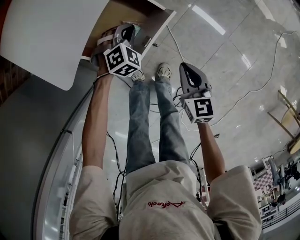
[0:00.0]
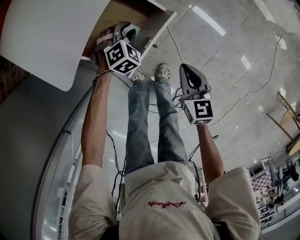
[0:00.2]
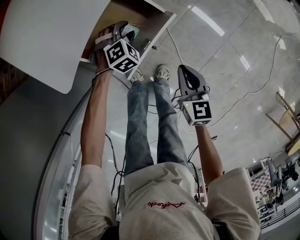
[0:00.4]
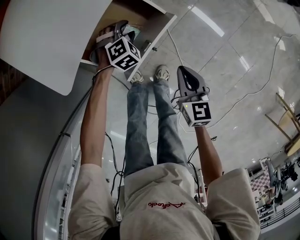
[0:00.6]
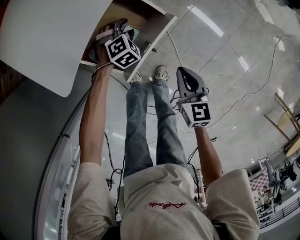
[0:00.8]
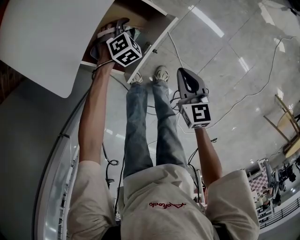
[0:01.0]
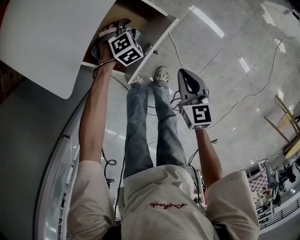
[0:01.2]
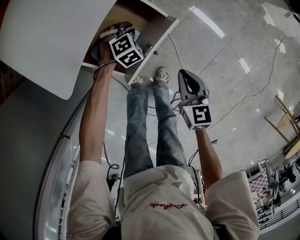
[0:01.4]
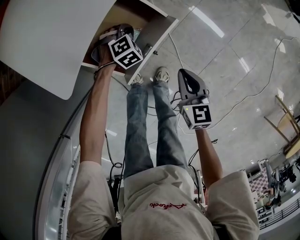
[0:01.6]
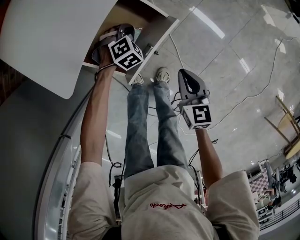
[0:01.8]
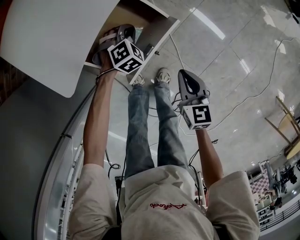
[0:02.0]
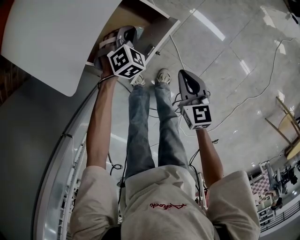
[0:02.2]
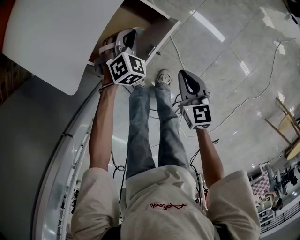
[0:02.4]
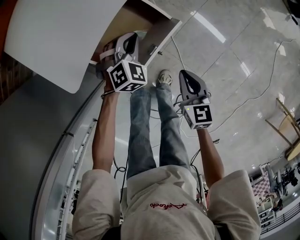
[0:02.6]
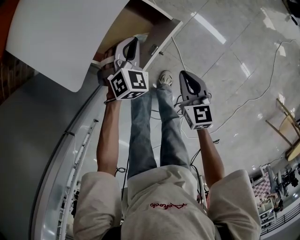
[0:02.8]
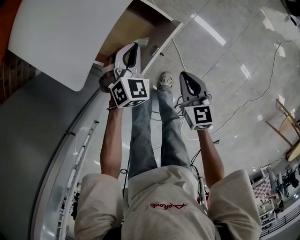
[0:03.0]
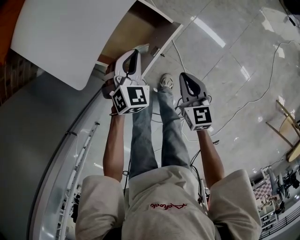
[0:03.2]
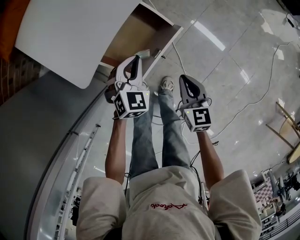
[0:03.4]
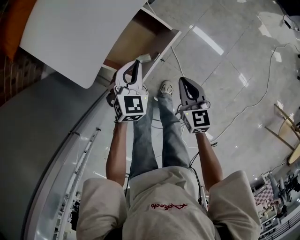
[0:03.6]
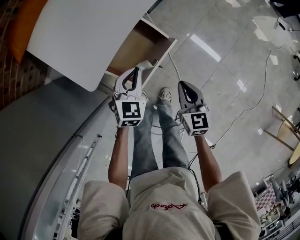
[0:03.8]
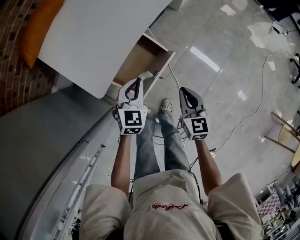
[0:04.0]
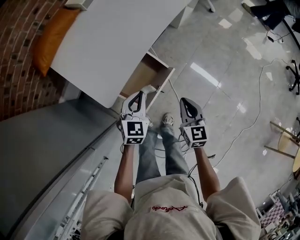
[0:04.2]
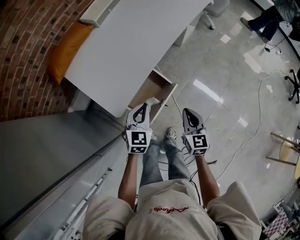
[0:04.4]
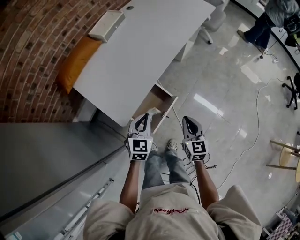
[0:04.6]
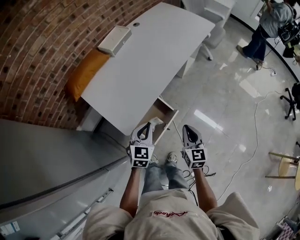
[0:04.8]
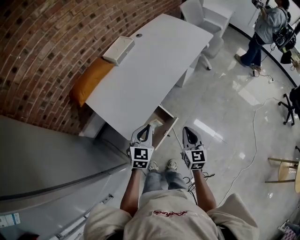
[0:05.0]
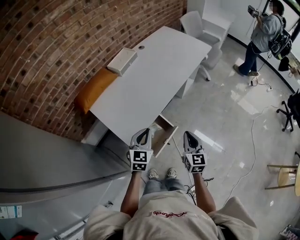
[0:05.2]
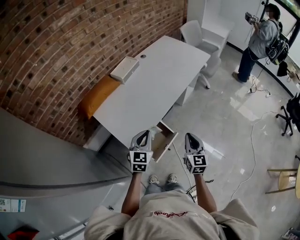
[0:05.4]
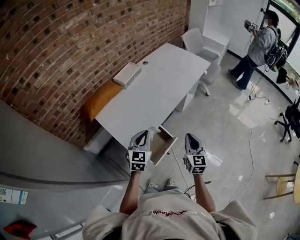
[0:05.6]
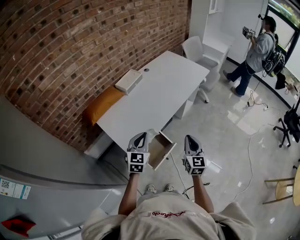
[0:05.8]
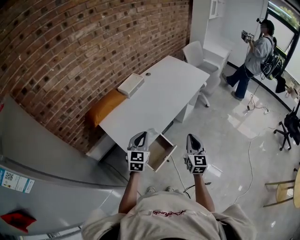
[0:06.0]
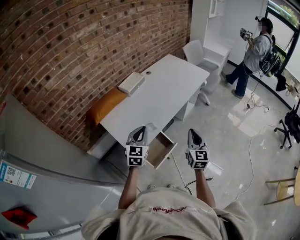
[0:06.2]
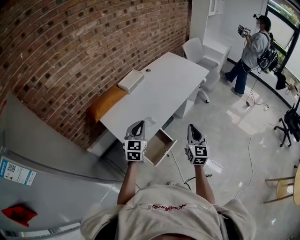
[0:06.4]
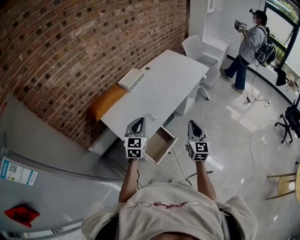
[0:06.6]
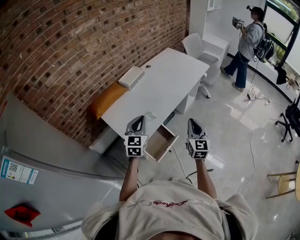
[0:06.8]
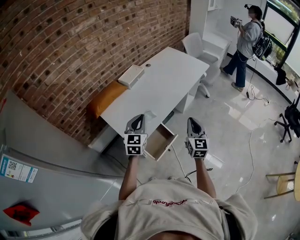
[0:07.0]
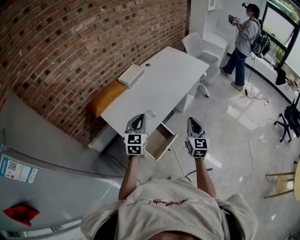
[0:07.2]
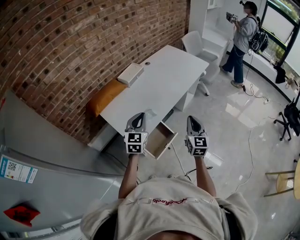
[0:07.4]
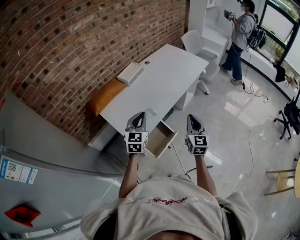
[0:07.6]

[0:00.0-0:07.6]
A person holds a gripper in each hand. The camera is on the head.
0:00.0 to 0:01.6: The left gripper heads downward, covering some 5 cm, and opens, then closes again.
0:01.6 to 0:03.0: The left gripper moves upward, approximately 15 cm, and turns by roughly 30 degrees.
0:03.0 to 0:04.6: Both grippers travel together upward, approximately 20 cm. The left gripper changes its angle by about 30 degrees.
0:04.6 to 0:06.0: Both grippers travel together upward, approximately 20 cm.
0:06.0 to 0:07.6: The grippers stay close to where they were, moving slightly.

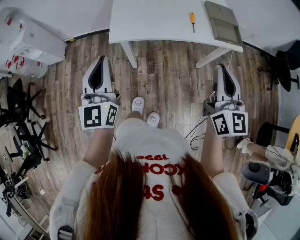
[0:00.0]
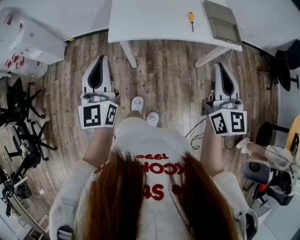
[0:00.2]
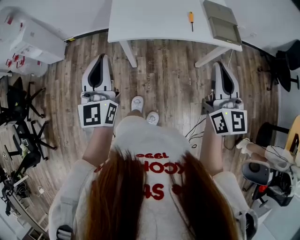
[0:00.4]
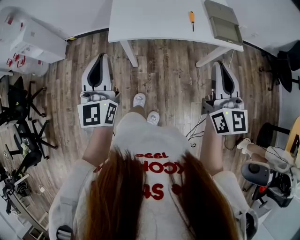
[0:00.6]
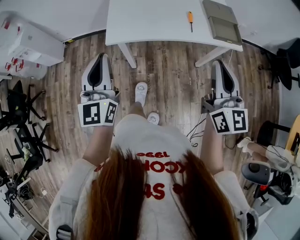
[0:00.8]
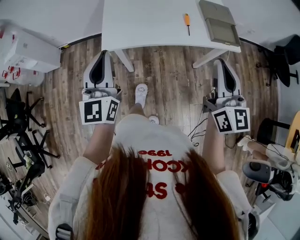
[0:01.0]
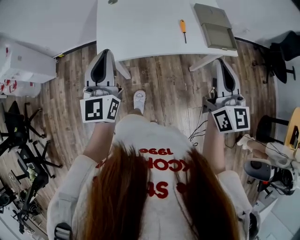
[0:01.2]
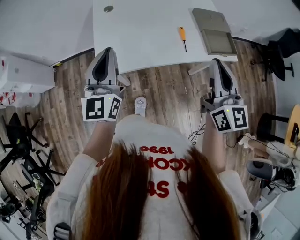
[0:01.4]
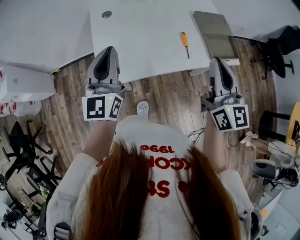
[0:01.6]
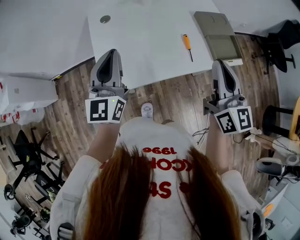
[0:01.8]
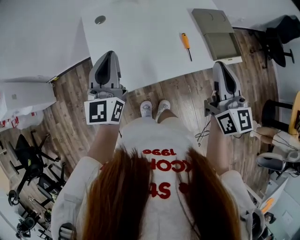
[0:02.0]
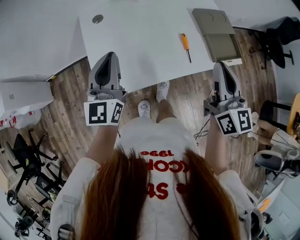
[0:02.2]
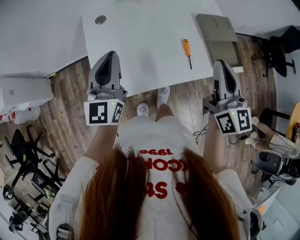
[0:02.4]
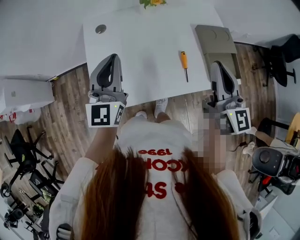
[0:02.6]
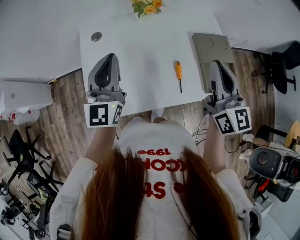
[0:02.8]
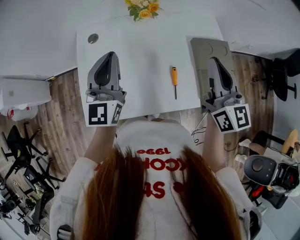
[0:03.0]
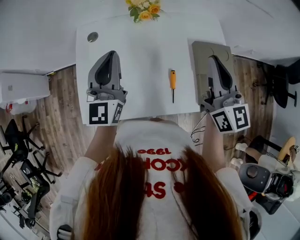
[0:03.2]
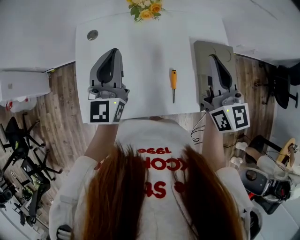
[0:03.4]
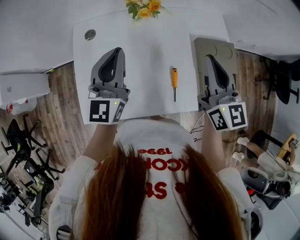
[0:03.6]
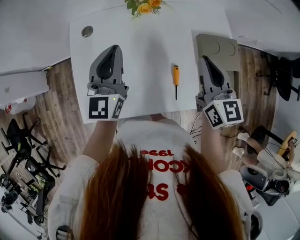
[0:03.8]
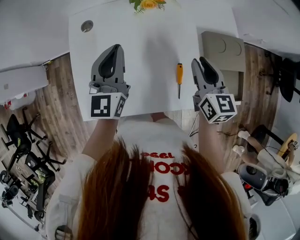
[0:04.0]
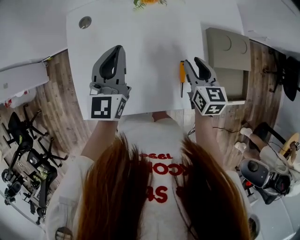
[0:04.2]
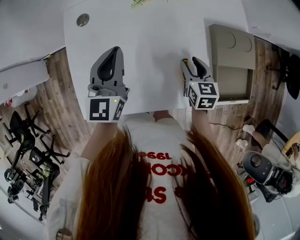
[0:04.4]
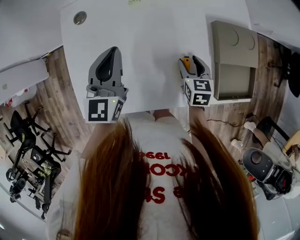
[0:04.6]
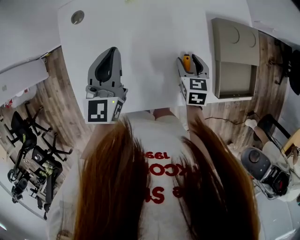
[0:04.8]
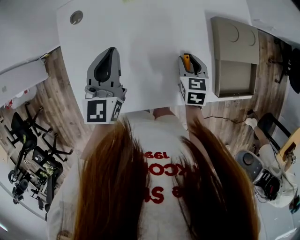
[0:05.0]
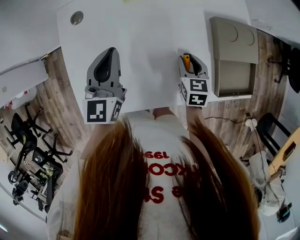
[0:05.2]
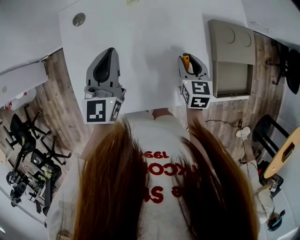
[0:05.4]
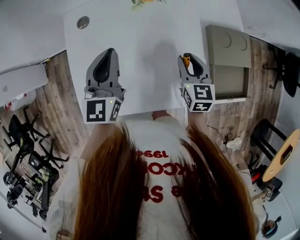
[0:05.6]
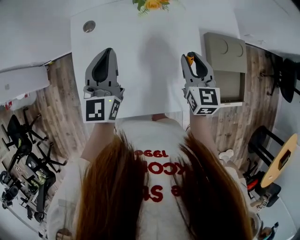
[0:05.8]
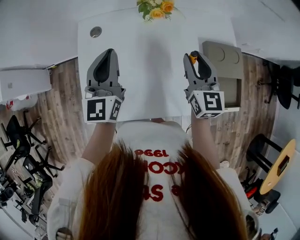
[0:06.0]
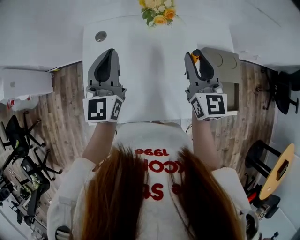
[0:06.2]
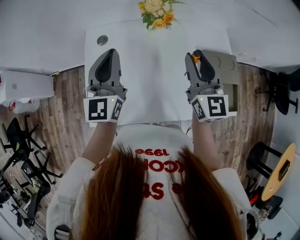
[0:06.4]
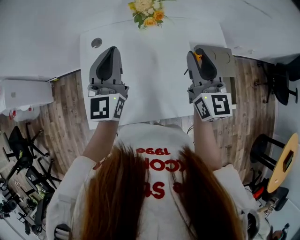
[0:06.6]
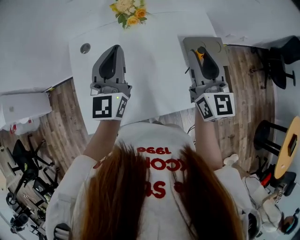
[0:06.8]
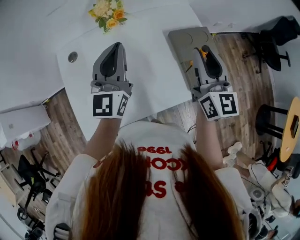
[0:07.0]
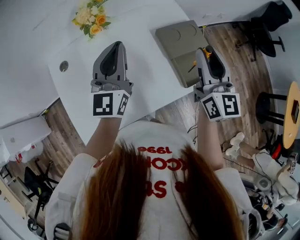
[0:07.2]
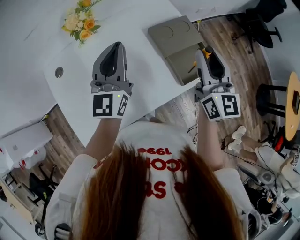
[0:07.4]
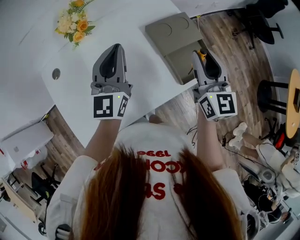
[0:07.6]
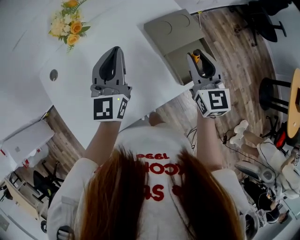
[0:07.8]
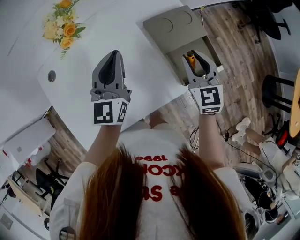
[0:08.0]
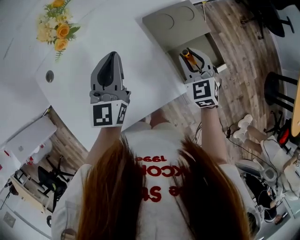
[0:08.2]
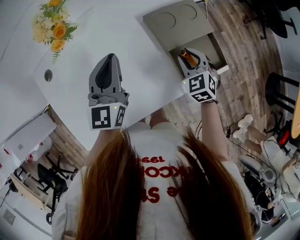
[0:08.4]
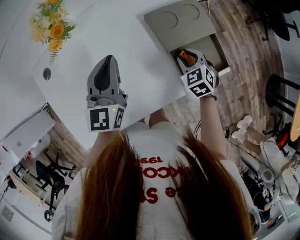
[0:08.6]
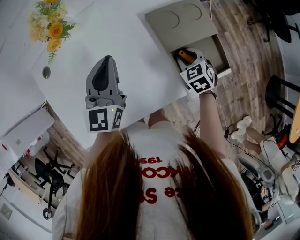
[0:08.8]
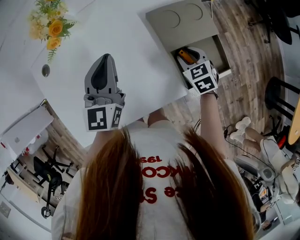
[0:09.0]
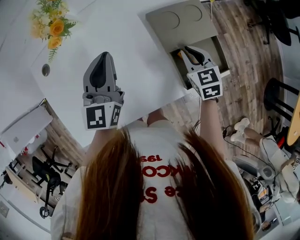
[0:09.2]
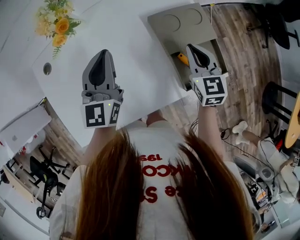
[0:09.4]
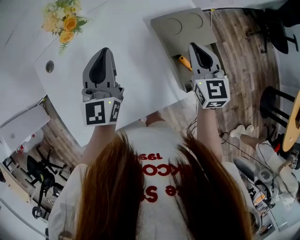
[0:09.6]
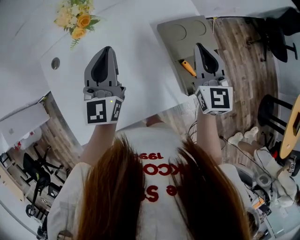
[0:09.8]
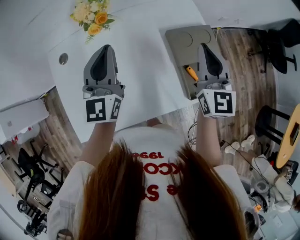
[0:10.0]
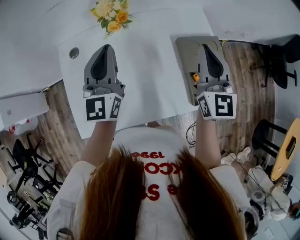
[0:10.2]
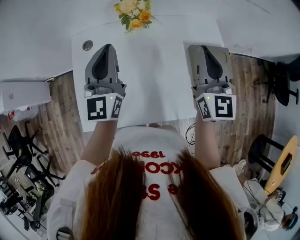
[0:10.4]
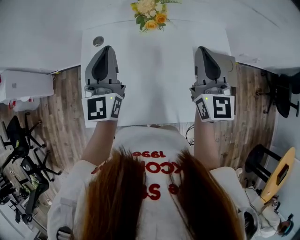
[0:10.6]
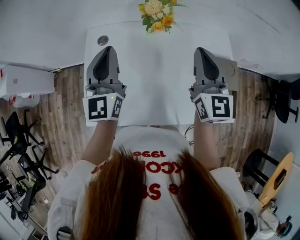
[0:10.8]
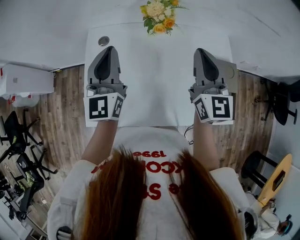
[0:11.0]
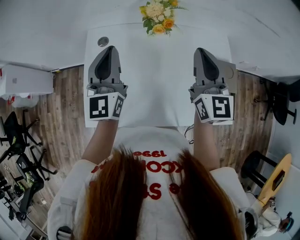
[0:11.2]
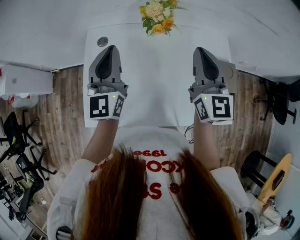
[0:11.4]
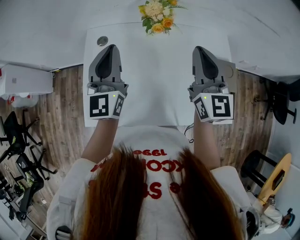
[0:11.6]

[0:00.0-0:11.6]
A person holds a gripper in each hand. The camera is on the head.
0:00.0 to 0:01.4: Both grippers move forward, roughly 15 cm.
0:01.4 to 0:02.8: The grippers both shift forward by approximately 20 cm.
0:02.8 to 0:04.4: The right gripper moves downward, some 30 cm, angles its fingers downward, by approximately 40 degrees, and opens. Meanwhile the left gripper is displaced downward and forward by roughly 15 cm.
0:04.4 to 0:05.8: The right gripper travels upward by some 10 cm, and rotates some 20 degrees.
0:05.8 to 0:07.2: The left gripper travels to the right by approximately 15 cm, and swivels some 20 degrees. Meanwhile the right gripper is displaced upward, to the right and backward by about 25 cm, and swivels some 30 degrees.
0:07.2 to 0:08.8: The left gripper moves downward, roughly 10 cm; the right gripper moves downward, roughly 30 cm, and points its fingers about 50 degrees further downward.
0:08.8 to 0:10.2: The left gripper heads upward and to the left, covering about 15 cm, and turns by some 20 degrees. The right gripper travels upward by about 30 cm, points its fingers some 50 degrees further upward, and closes.
0:10.2 to 0:11.6: Both grippers travel together to the left, roughly 10 cm.

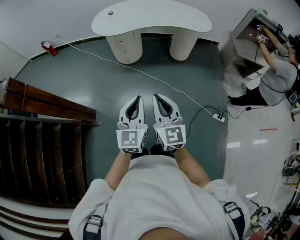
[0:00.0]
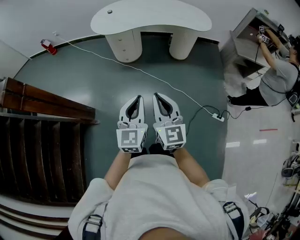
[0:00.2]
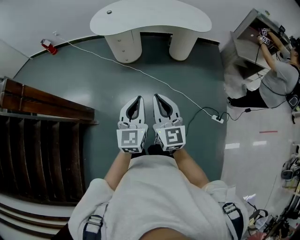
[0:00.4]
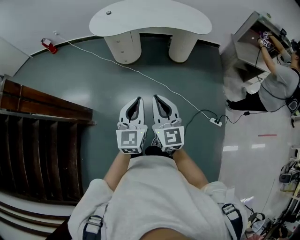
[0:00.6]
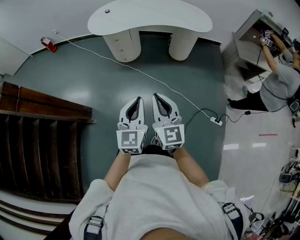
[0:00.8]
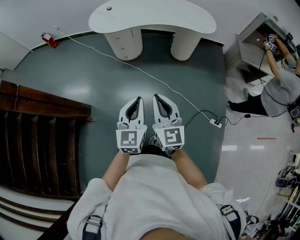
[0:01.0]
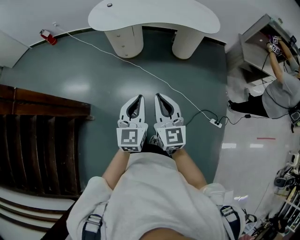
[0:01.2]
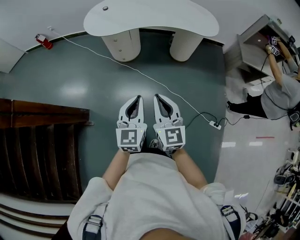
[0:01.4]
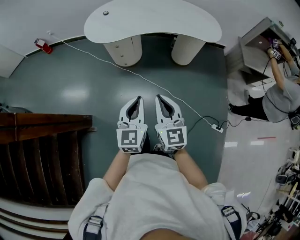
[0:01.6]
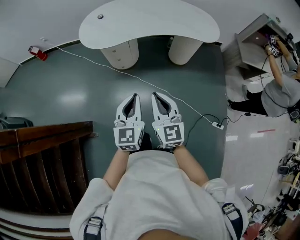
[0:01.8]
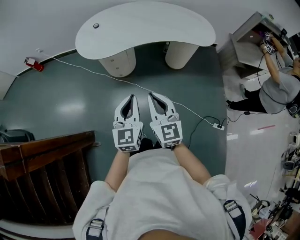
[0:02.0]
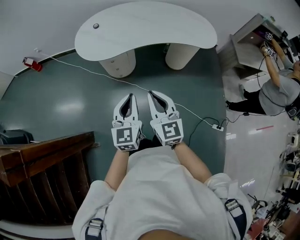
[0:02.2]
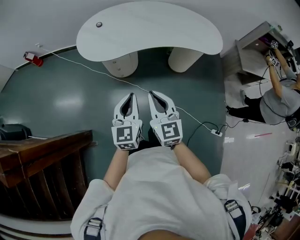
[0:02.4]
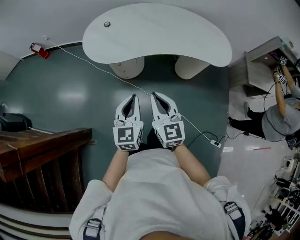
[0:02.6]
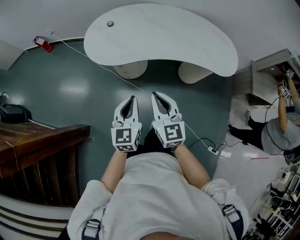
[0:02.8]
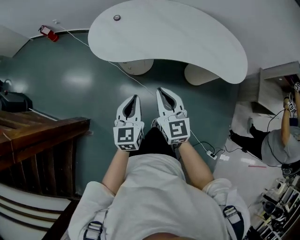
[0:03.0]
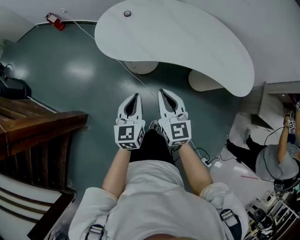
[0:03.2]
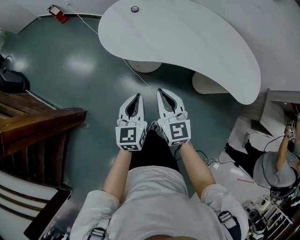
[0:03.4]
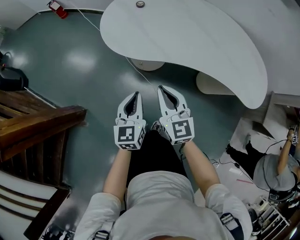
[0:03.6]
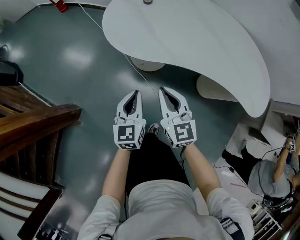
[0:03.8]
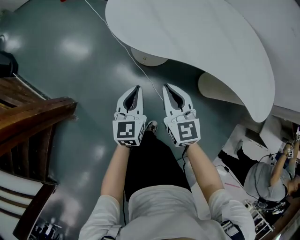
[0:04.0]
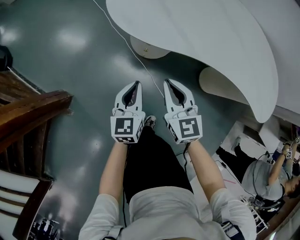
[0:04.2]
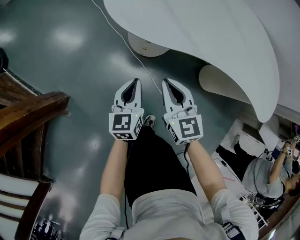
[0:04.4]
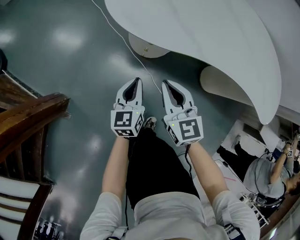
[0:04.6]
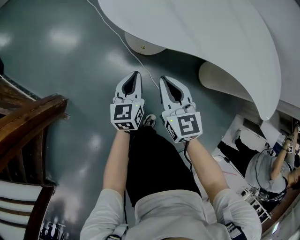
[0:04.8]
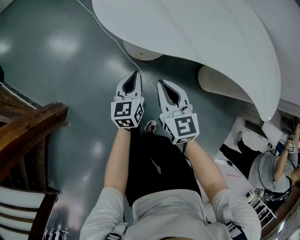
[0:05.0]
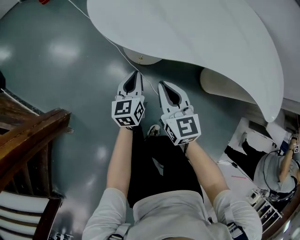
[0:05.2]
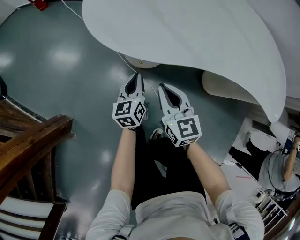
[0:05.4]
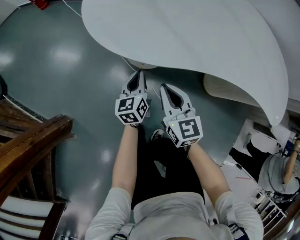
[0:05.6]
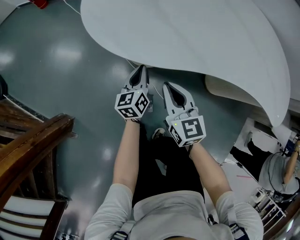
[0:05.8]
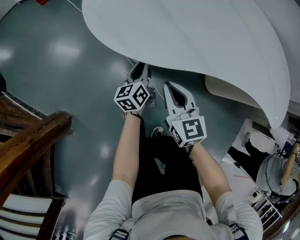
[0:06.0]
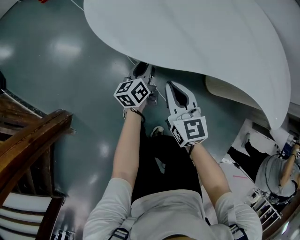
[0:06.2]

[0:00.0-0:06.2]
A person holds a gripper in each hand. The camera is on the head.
0:00.0 to 0:01.6: The two grippers go roughly 20 cm forward.
0:01.6 to 0:03.2: The two grippers go approximately 30 cm forward. The left gripper turns by approximately 20 degrees.
0:03.2 to 0:04.6: The left gripper travels downward and forward by roughly 30 cm. The right gripper moves downward, forward and to the left, some 30 cm.
0:04.6 to 0:06.2: The left gripper is displaced forward, downward and to the right by roughly 20 cm, rotates roughly 30 degrees, and opens, while the right gripper moves downward and forward, about 10 cm.
